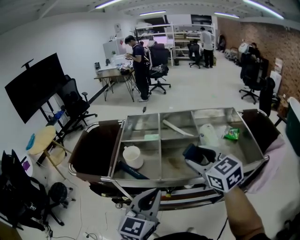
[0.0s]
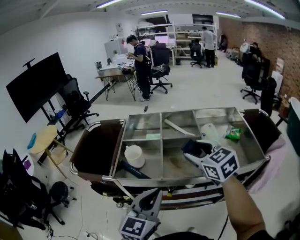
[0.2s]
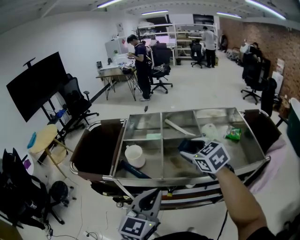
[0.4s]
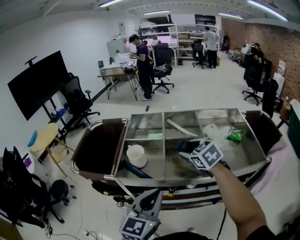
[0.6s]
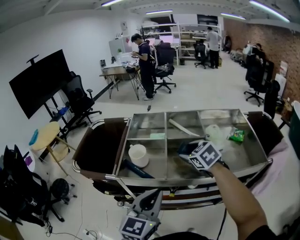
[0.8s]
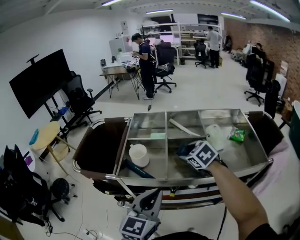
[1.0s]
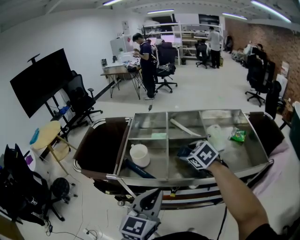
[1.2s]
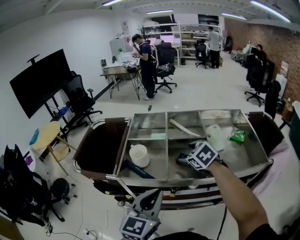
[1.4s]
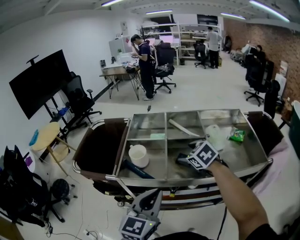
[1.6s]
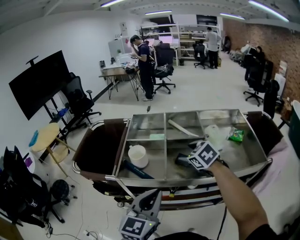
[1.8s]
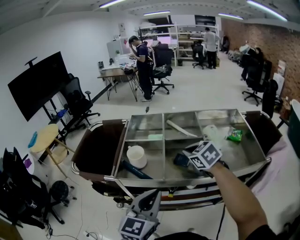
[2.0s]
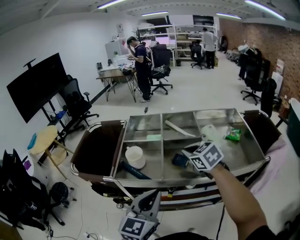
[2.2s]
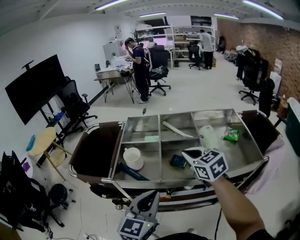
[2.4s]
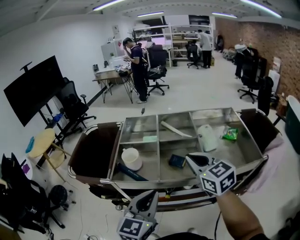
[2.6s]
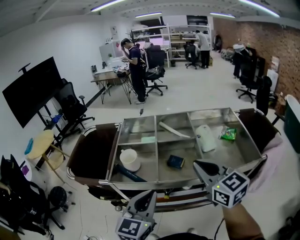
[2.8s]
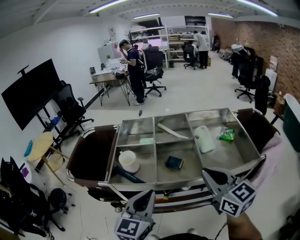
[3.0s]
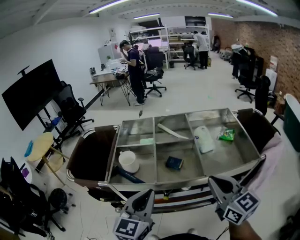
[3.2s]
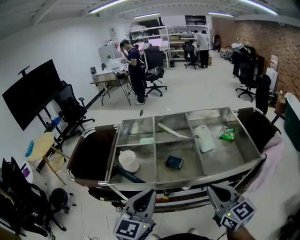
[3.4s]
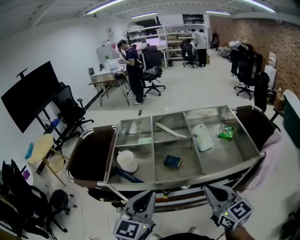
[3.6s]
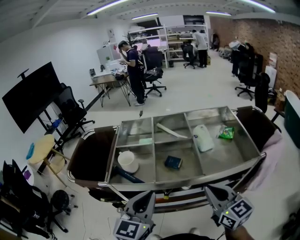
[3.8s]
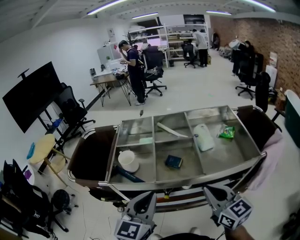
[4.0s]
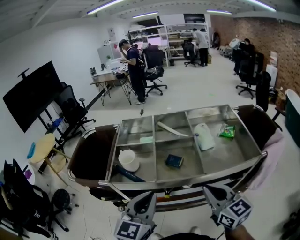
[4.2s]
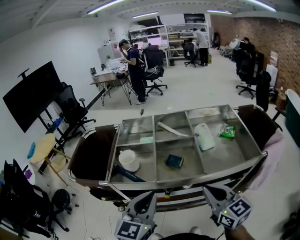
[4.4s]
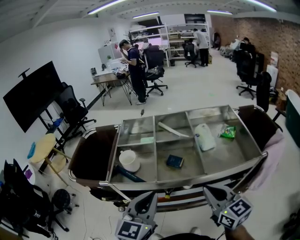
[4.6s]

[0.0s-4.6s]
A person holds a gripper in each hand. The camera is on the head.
0.0s to 1.6s: The right gripper shifts approximately 15 cm downward and forward, and rotates roughly 30 degrees.
1.6s to 3.0s: The right gripper goes roughly 25 cm backward, upward and to the right, angles its fingers upward, by approximately 40 degrees, and closes its fingers.
3.0s to 4.6s: The right gripper is displaced downward by approximately 5 cm.

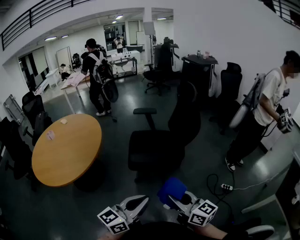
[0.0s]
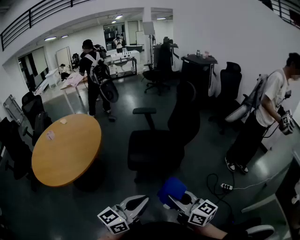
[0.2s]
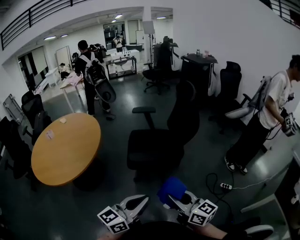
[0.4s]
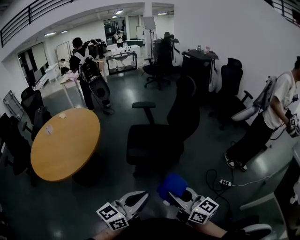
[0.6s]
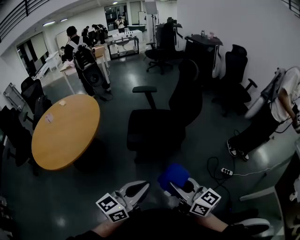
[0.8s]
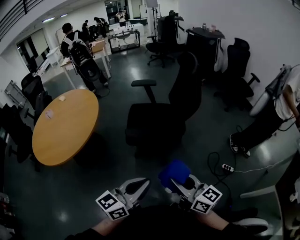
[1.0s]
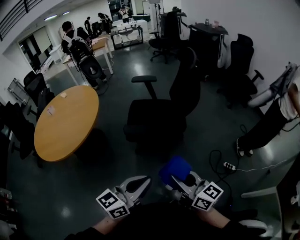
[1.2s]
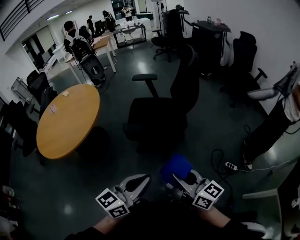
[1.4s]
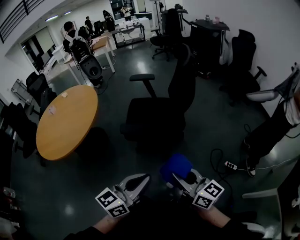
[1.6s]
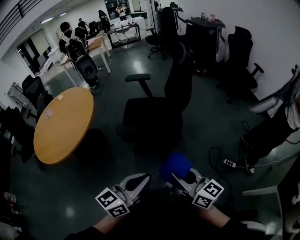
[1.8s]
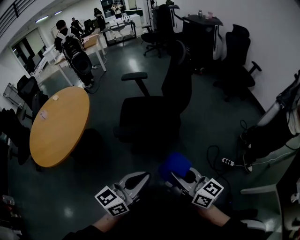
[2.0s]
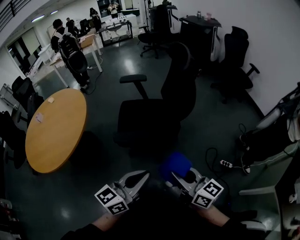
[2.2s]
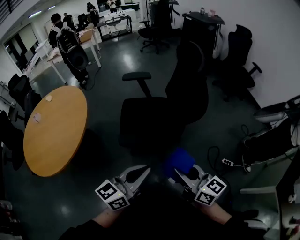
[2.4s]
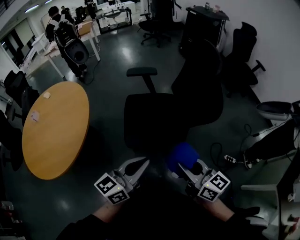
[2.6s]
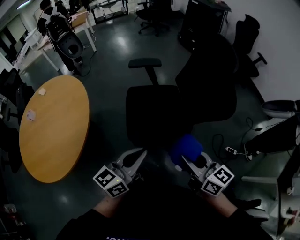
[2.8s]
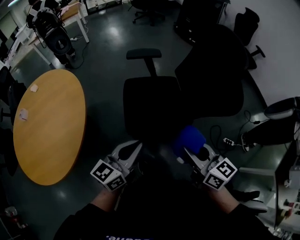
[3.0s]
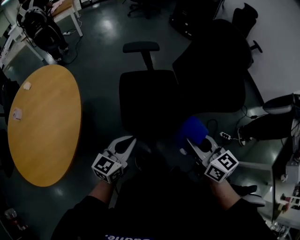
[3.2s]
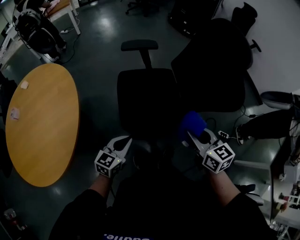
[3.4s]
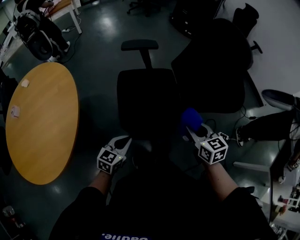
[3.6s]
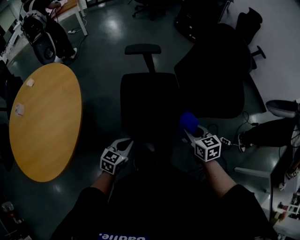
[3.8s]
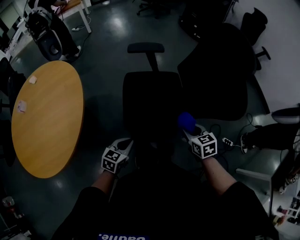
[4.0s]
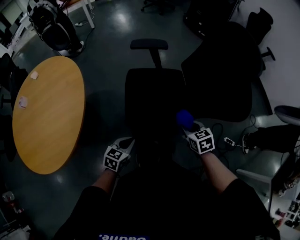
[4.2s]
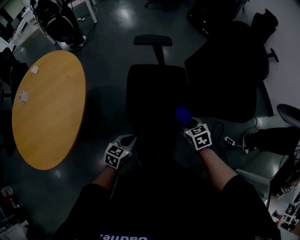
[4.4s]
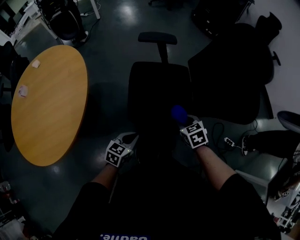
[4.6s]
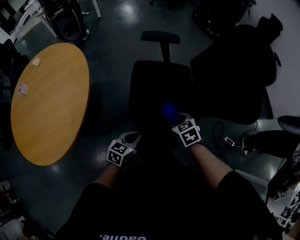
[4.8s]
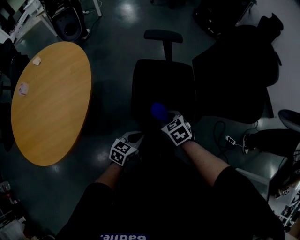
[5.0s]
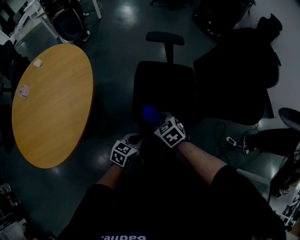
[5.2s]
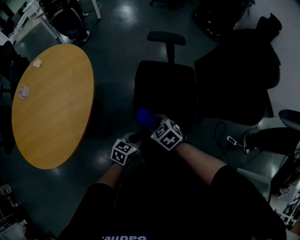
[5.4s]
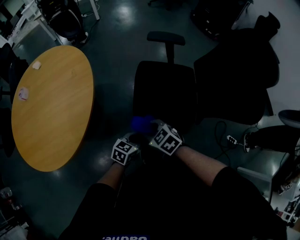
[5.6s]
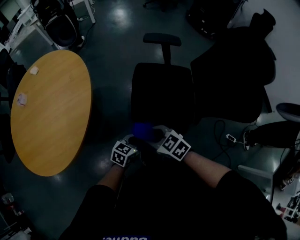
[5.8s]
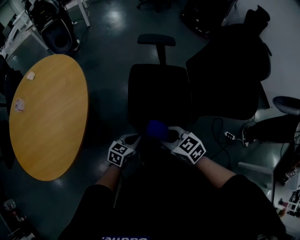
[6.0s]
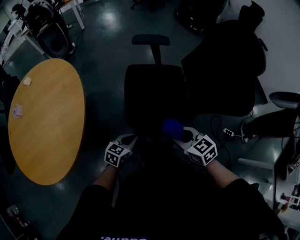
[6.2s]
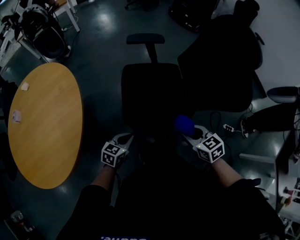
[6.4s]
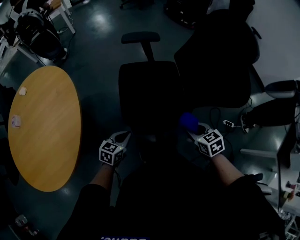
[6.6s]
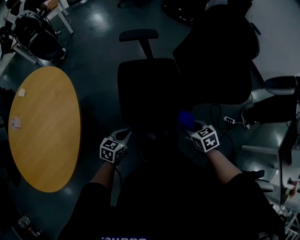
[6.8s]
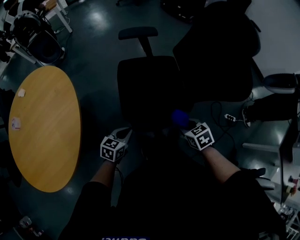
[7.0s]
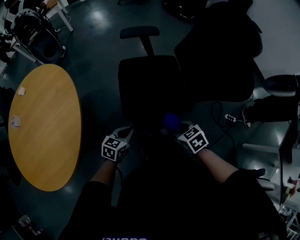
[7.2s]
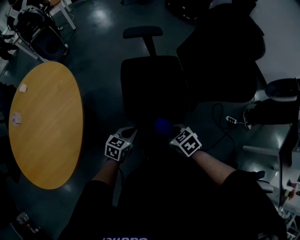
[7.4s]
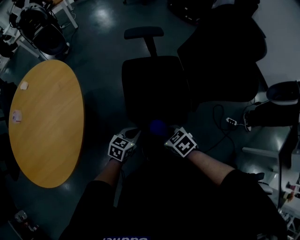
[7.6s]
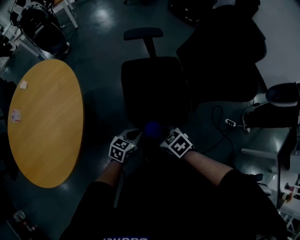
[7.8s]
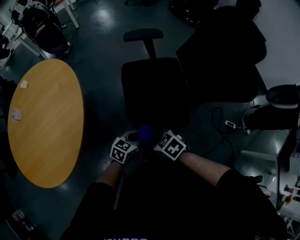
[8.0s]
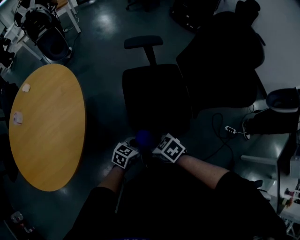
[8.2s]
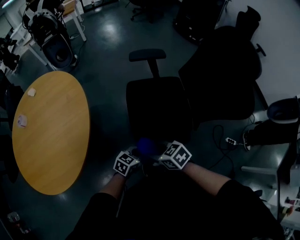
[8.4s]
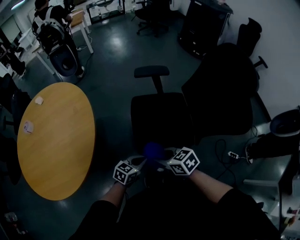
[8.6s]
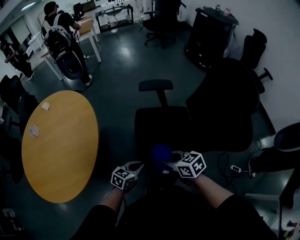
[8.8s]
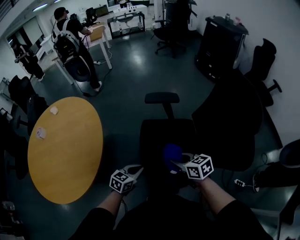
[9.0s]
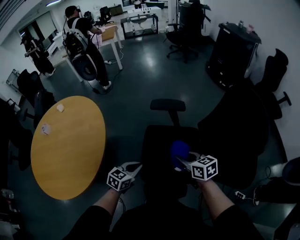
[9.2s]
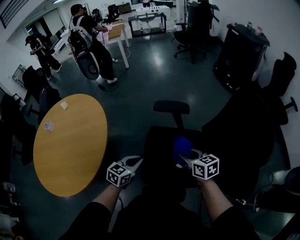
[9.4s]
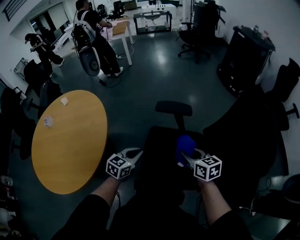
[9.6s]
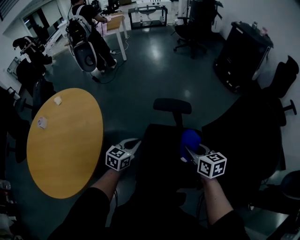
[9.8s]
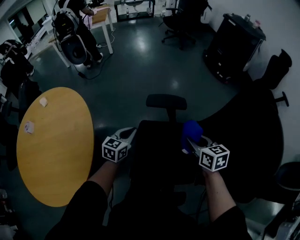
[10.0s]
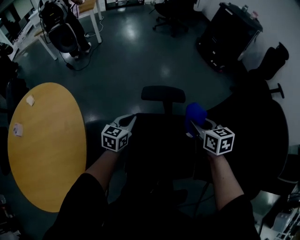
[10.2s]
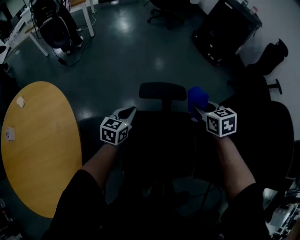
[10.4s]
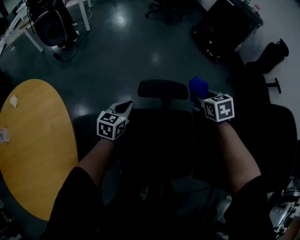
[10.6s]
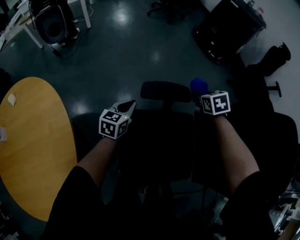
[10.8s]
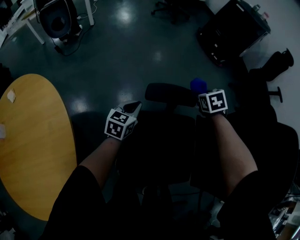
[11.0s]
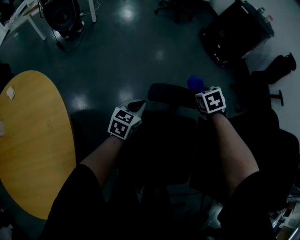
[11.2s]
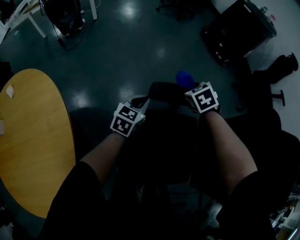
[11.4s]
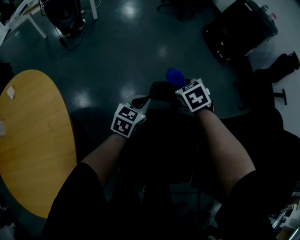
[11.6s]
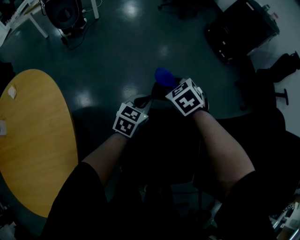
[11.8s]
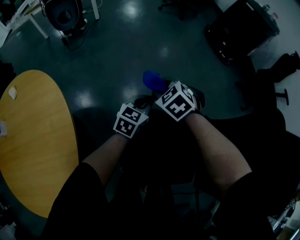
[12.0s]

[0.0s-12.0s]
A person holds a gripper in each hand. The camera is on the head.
0.0s to 1.6s: Both grippers travel together to the right, approximately 10 cm.
1.6s to 3.0s: Both grippers move forward and to the left, some 35 cm. The right gripper swivels about 20 degrees.
3.0s to 4.4s: The right gripper moves downward and forward, some 25 cm, and tilts its fingers about 40 degrees downward; the left gripper moves downward, roughly 25 cm, and tips its fingers downward by some 30 degrees.
4.4s to 6.0s: The right gripper goes roughly 20 cm to the left, and rotates roughly 30 degrees.
6.0s to 7.6s: The right gripper goes approximately 10 cm downward, travels to the right and back again, some 20 cm each way, and swivels roughly 20 degrees.
7.6s to 9.0s: The right gripper moves roughly 25 cm, and swivels roughly 20 degrees; the left gripper changes place by some 15 cm.
9.0s to 10.4s: The grippers both shift forward by some 35 cm. The right gripper changes its angle by approximately 30 degrees.
10.4s to 12.0s: The right gripper heads to the left, covering some 25 cm, and swivels about 40 degrees. The left gripper heads forward, covering about 5 cm.

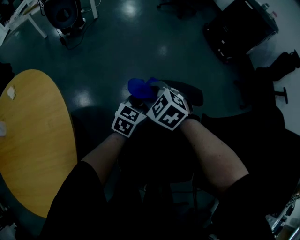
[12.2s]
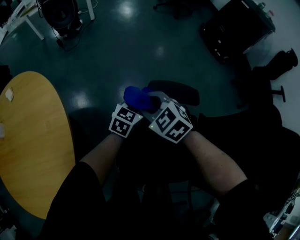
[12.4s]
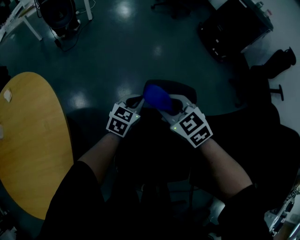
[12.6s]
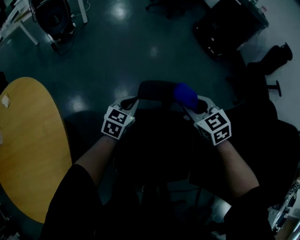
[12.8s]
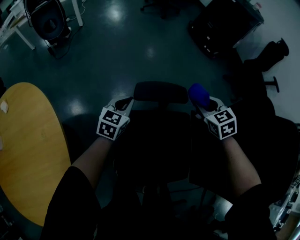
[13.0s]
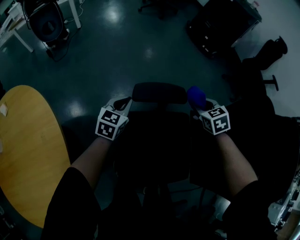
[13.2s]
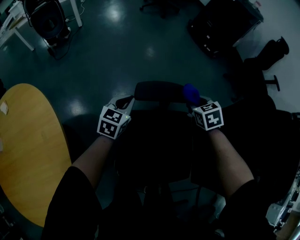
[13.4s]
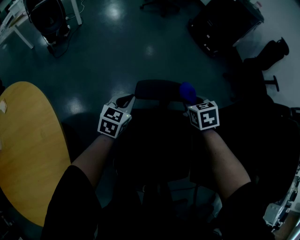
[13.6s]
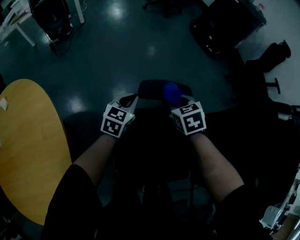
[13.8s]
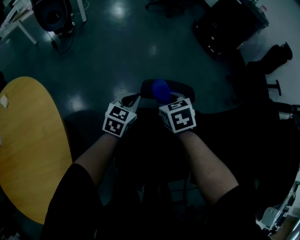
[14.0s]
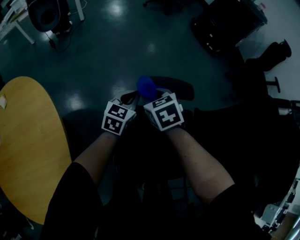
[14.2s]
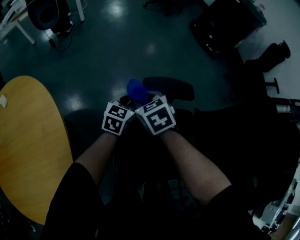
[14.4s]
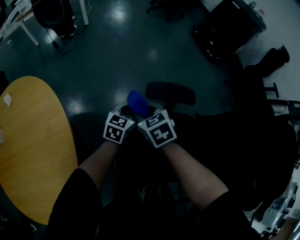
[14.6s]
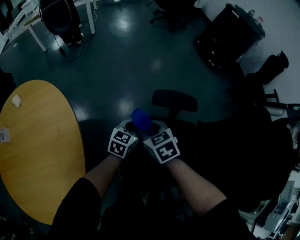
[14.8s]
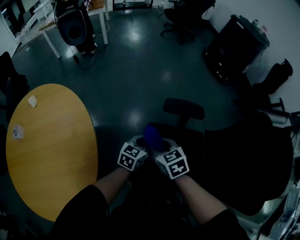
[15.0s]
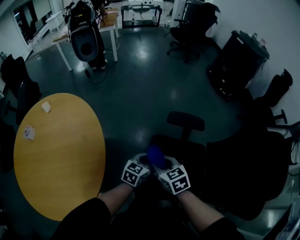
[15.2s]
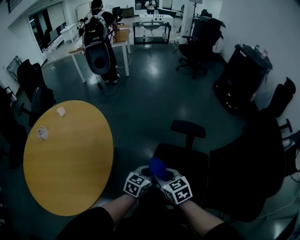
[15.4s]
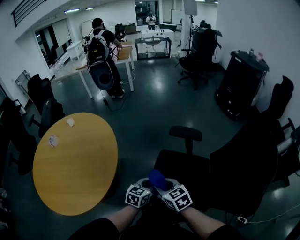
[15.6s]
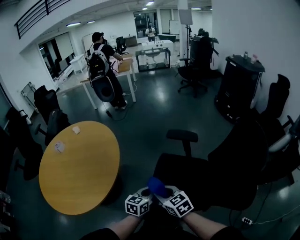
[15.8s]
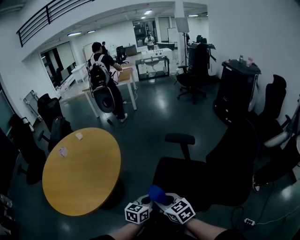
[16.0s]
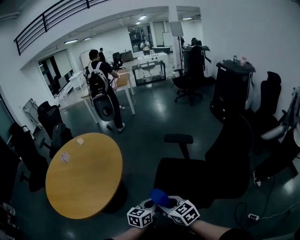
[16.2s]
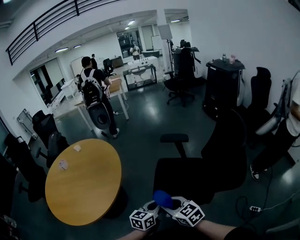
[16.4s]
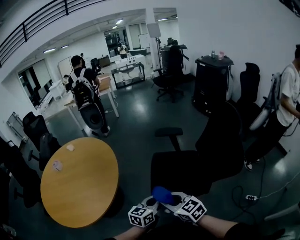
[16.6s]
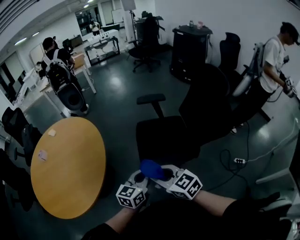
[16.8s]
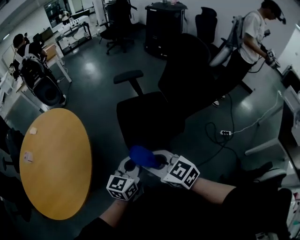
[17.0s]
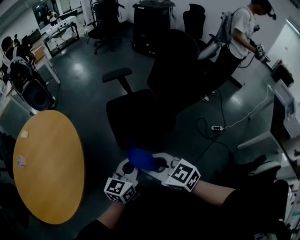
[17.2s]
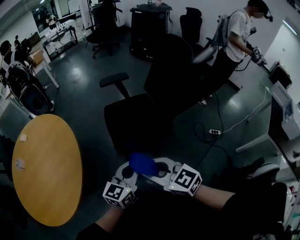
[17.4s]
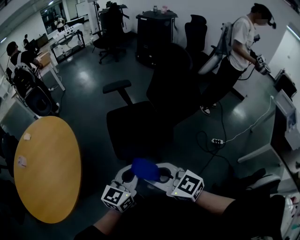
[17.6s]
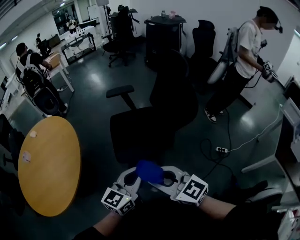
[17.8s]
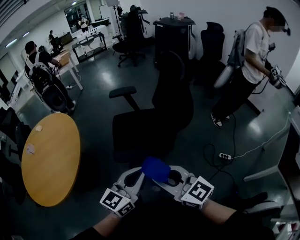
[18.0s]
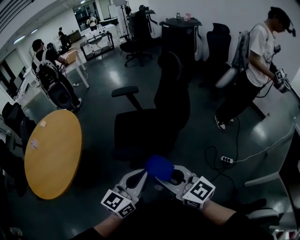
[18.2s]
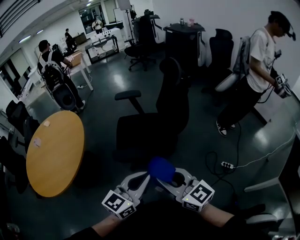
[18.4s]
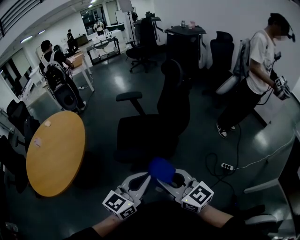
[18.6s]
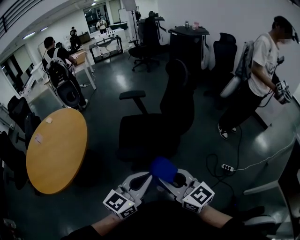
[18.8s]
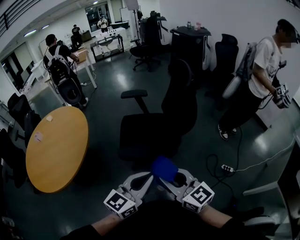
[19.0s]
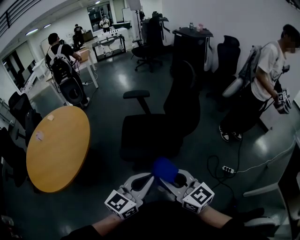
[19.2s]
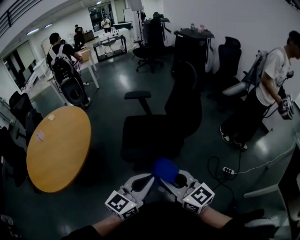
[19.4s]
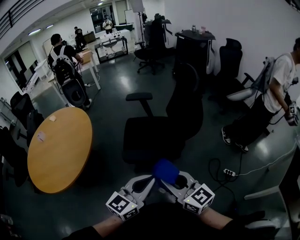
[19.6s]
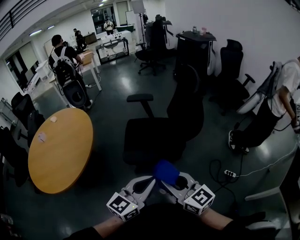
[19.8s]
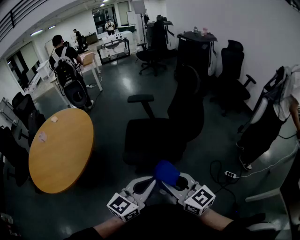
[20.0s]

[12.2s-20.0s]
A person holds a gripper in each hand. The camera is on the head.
12.2s to 13.8s: The right gripper is displaced to the right by approximately 15 cm, and swivels some 40 degrees.
13.8s to 15.4s: The left gripper goes some 25 cm backward. Meanwhile the right gripper shifts approximately 35 cm backward, to the left and upward, and turns by roughly 30 degrees.
15.4s to 16.8s: The right gripper moves backward, roughly 30 cm. The left gripper shifts approximately 30 cm backward and upward.
16.8s to 18.4s: The right gripper heads to the right and backward, covering some 30 cm, and rotates about 20 degrees. The left gripper goes about 35 cm to the right, backward and upward.
18.4s to 20.0s: The grippers move only a little.
